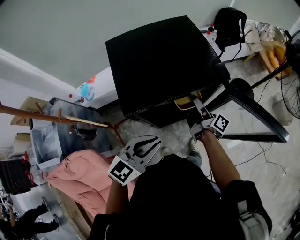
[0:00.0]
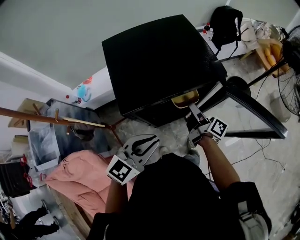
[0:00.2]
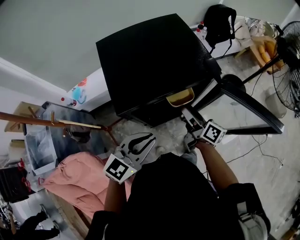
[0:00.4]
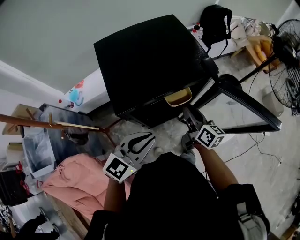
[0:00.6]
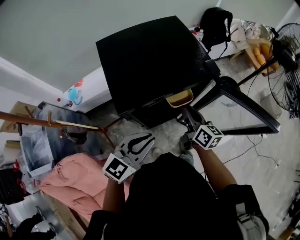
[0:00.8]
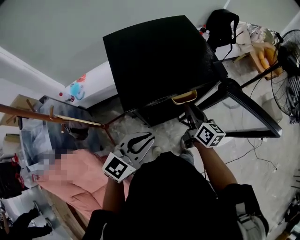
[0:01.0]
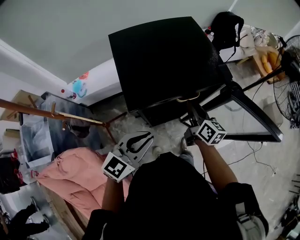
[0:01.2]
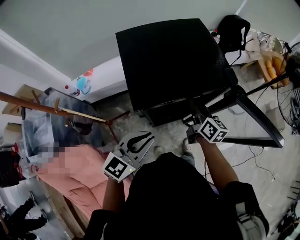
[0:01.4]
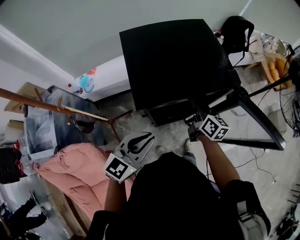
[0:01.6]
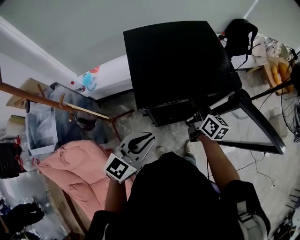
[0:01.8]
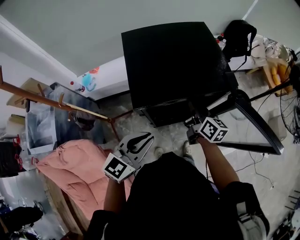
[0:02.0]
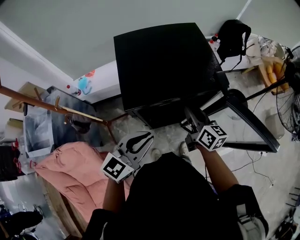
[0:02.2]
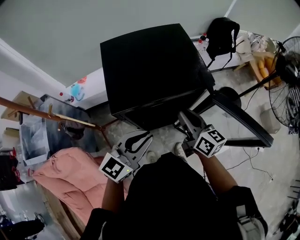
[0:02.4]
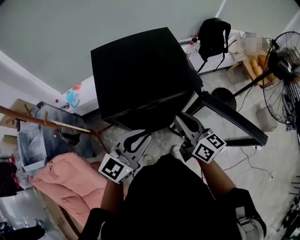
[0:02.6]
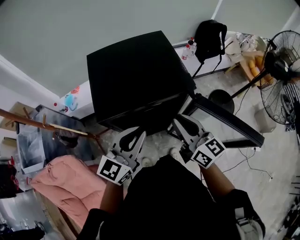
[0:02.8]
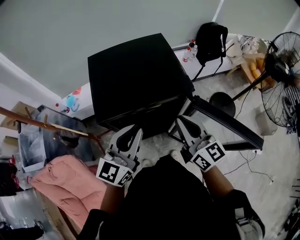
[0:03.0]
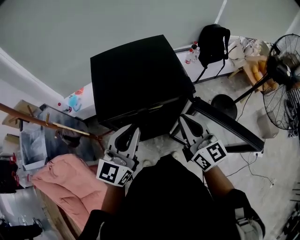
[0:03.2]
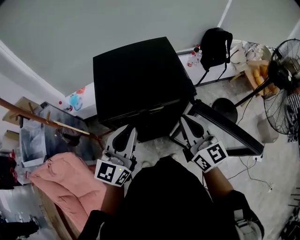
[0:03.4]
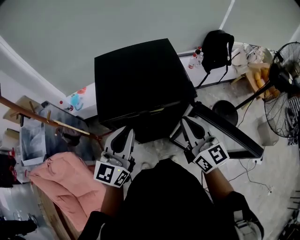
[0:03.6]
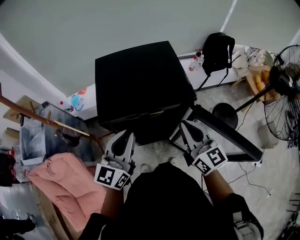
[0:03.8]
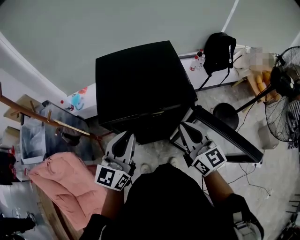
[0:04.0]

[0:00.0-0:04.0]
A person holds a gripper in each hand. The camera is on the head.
0:00.0 to 0:01.4: The right gripper twists some 40 degrees counterclockwise, seen from behind, and closes up.
0:01.4 to 0:02.6: The left gripper goes about 10 cm to the right, while the right gripper shifts about 10 cm upward and backward.
0:02.6 to 0:04.0: The right gripper swivels roughly 20 degrees, while the left gripper moves about 5 cm, and turns by roughly 30 degrees.

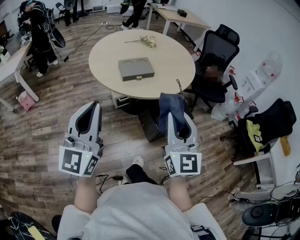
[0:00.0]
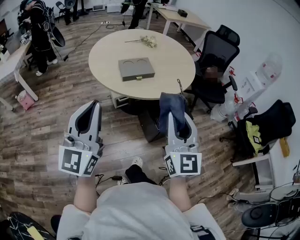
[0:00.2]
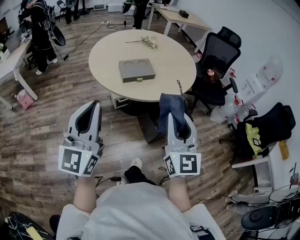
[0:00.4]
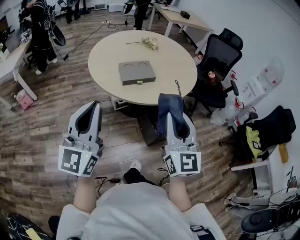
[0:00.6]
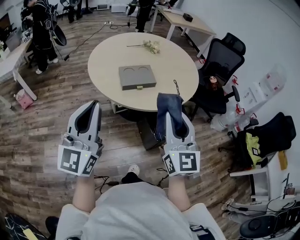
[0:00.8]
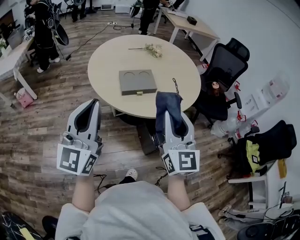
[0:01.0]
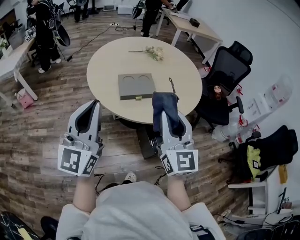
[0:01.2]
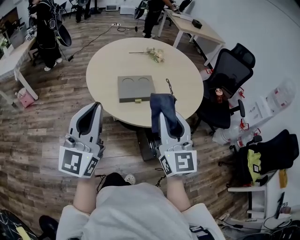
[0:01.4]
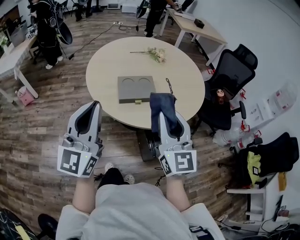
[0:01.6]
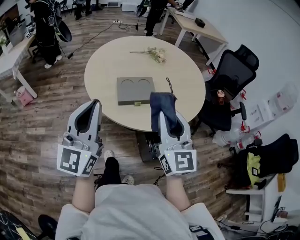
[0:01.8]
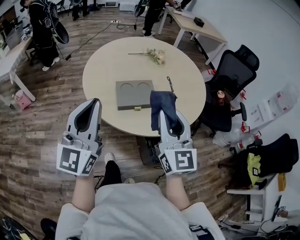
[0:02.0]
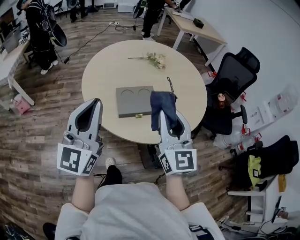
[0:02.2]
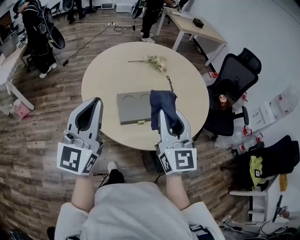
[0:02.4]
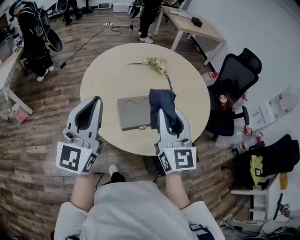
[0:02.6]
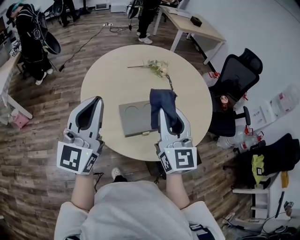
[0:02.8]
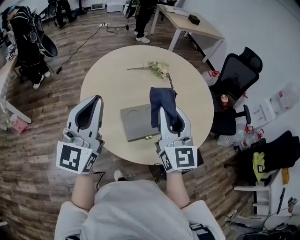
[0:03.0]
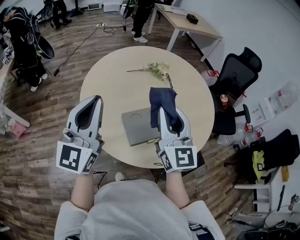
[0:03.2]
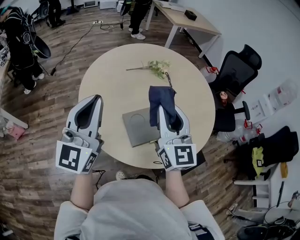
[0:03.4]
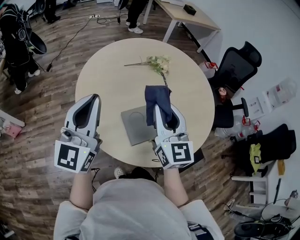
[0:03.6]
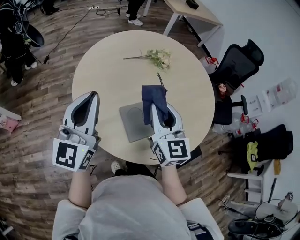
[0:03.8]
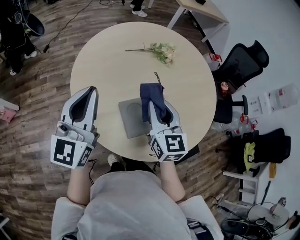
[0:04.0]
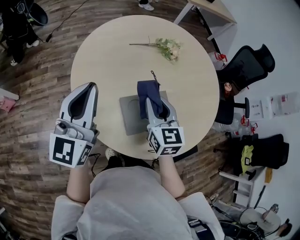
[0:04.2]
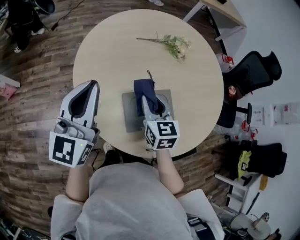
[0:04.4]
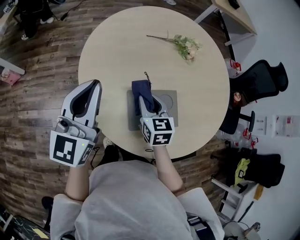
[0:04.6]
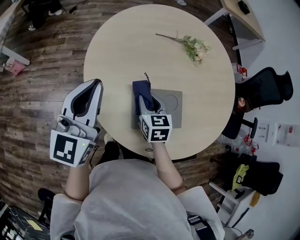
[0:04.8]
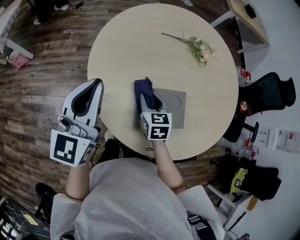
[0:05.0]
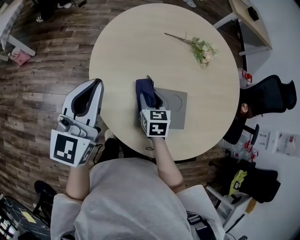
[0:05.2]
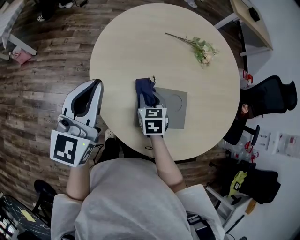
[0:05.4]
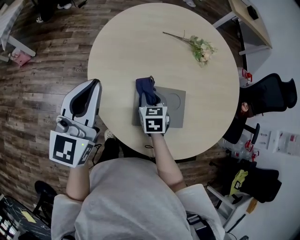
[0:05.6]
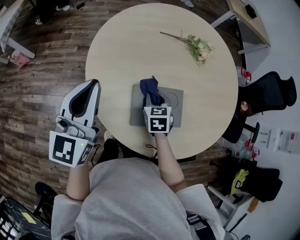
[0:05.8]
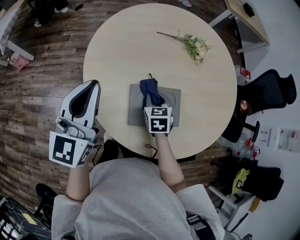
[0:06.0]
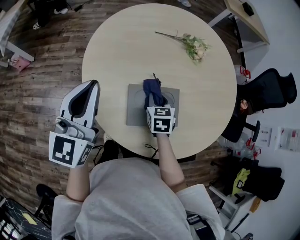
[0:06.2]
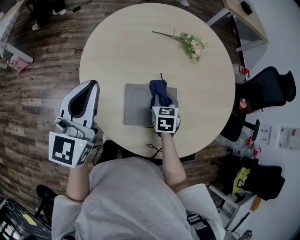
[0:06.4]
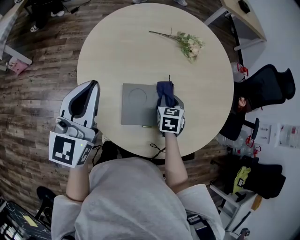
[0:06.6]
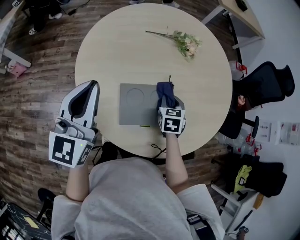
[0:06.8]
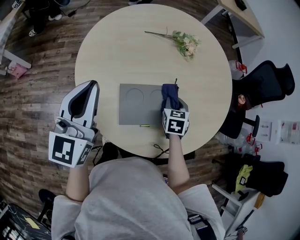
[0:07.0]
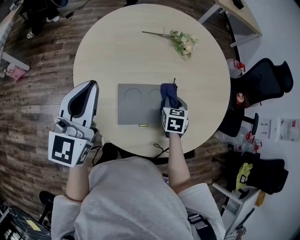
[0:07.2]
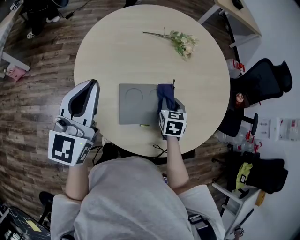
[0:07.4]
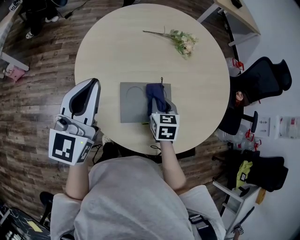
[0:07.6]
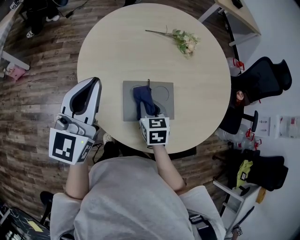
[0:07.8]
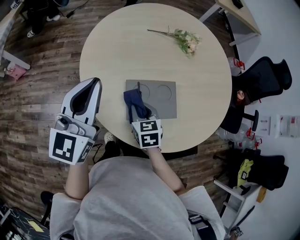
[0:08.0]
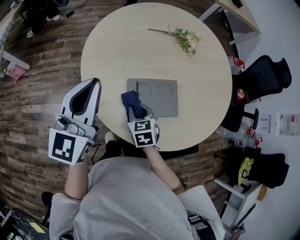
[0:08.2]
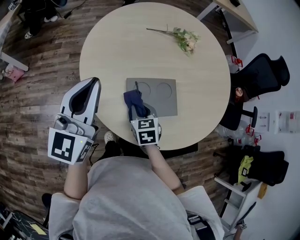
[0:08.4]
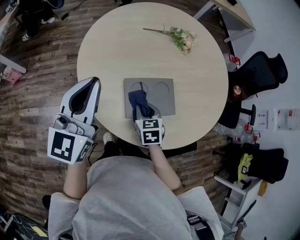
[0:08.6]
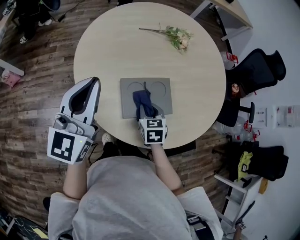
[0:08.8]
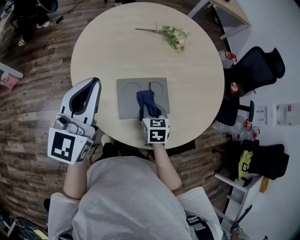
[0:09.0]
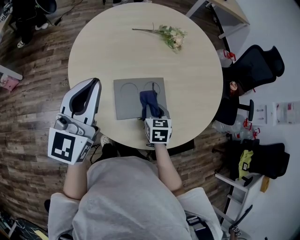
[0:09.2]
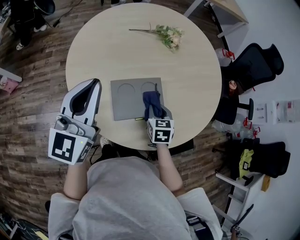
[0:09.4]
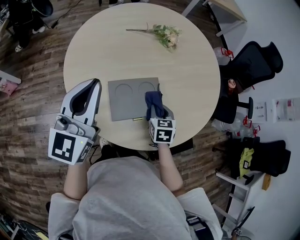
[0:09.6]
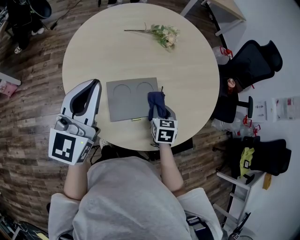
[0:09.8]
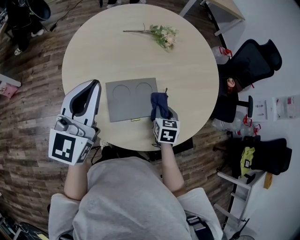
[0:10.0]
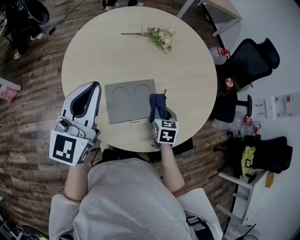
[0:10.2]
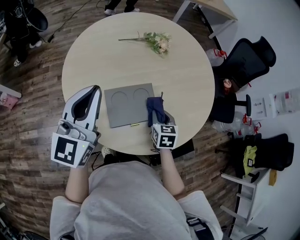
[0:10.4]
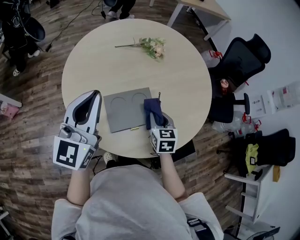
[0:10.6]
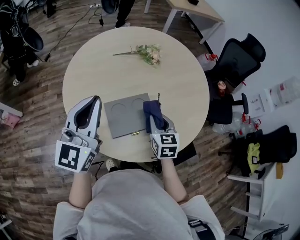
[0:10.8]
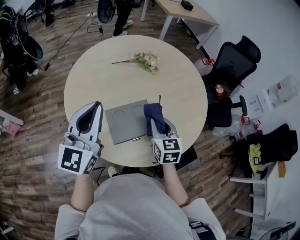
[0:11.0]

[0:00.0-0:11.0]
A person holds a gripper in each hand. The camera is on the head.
0:00.0 to 0:01.6: Both grippers travel together forward, about 20 cm.
0:01.6 to 0:03.2: Both grippers travel together forward, approximately 30 cm.
0:03.2 to 0:04.8: The left gripper is displaced downward and forward by approximately 15 cm, and changes its angle by roughly 20 degrees; the right gripper heads downward, covering approximately 30 cm, and angles its fingers downward, by roughly 40 degrees.
0:04.8 to 0:06.2: The right gripper moves to the right, about 5 cm.
0:06.2 to 0:07.8: The right gripper goes approximately 5 cm backward, and moves some 15 cm to the right and comes back.
0:07.8 to 0:09.4: The right gripper travels to the right by about 10 cm.
0:09.4 to 0:11.0: The right gripper goes approximately 15 cm upward, and rotates approximately 20 degrees.

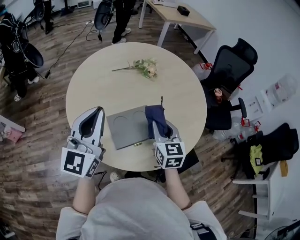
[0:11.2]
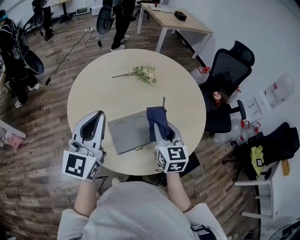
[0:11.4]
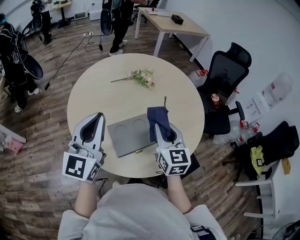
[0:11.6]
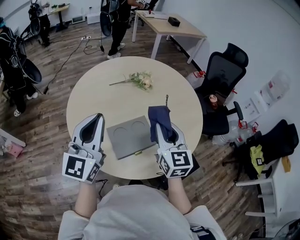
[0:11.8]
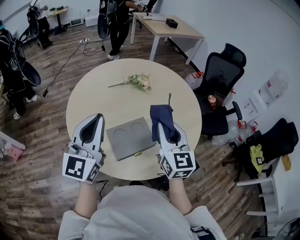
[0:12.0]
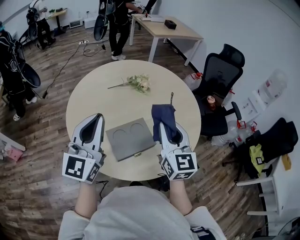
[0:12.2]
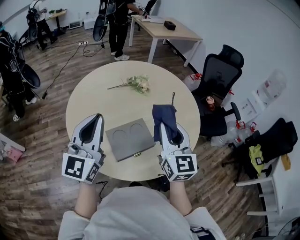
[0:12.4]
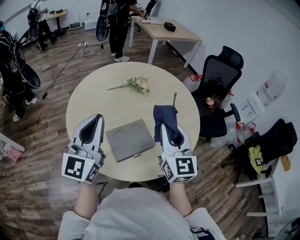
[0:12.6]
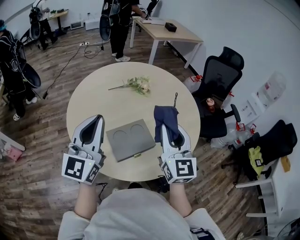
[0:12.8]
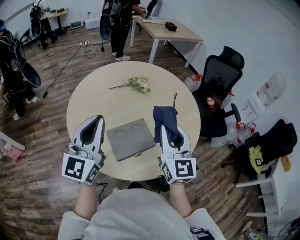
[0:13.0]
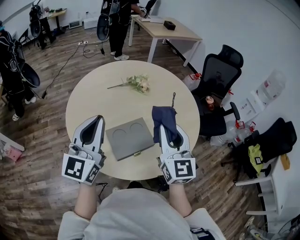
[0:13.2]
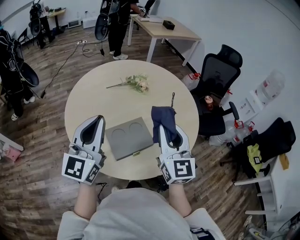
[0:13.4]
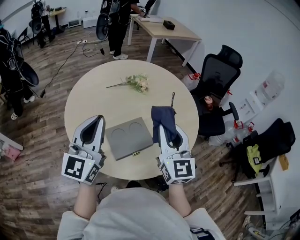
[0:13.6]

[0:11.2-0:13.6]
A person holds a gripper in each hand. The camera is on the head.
0:11.2 to 0:12.4: The right gripper moves upward, some 15 cm, and swivels approximately 20 degrees.
0:12.4 to 0:13.6: There are only small adjustments of the grippers.

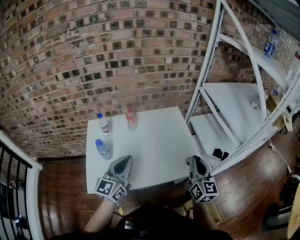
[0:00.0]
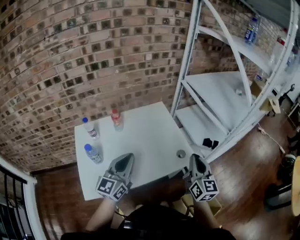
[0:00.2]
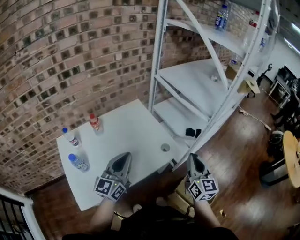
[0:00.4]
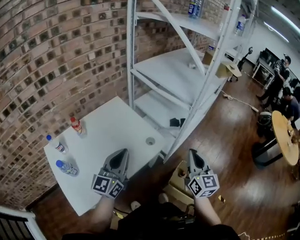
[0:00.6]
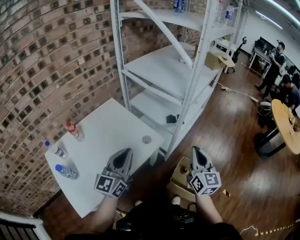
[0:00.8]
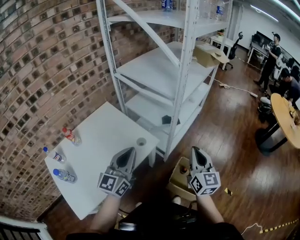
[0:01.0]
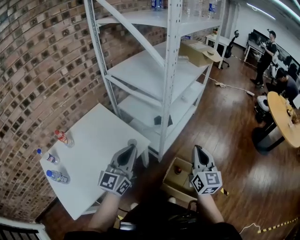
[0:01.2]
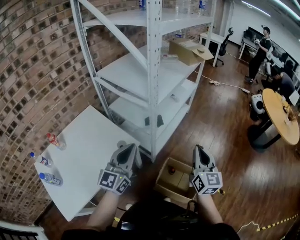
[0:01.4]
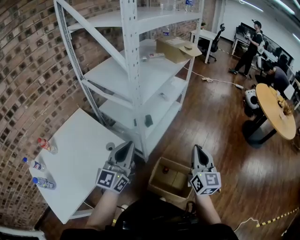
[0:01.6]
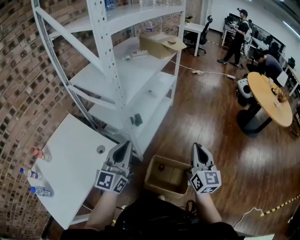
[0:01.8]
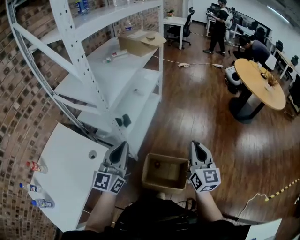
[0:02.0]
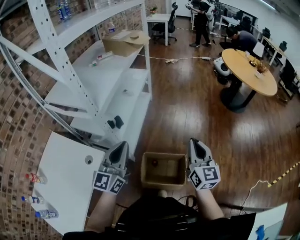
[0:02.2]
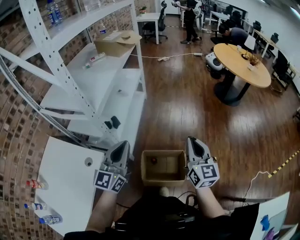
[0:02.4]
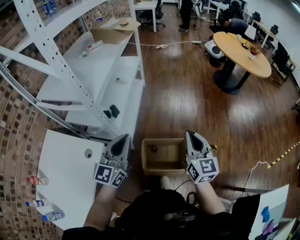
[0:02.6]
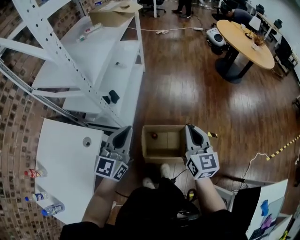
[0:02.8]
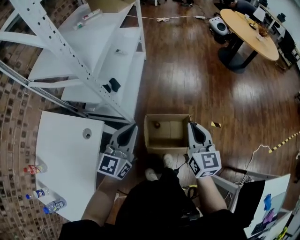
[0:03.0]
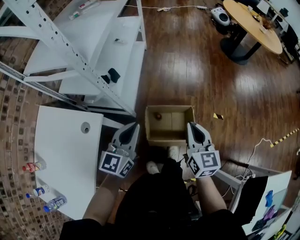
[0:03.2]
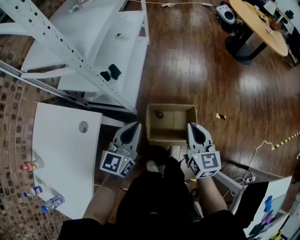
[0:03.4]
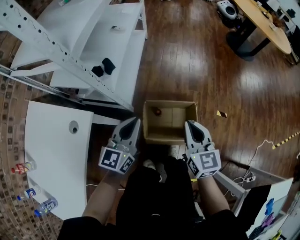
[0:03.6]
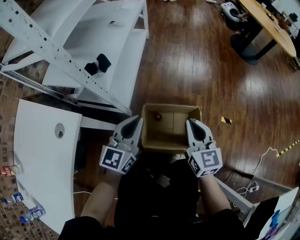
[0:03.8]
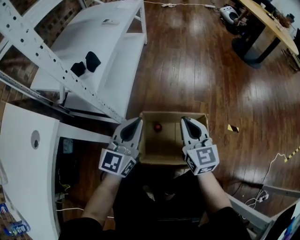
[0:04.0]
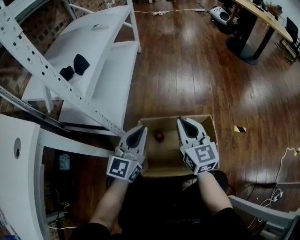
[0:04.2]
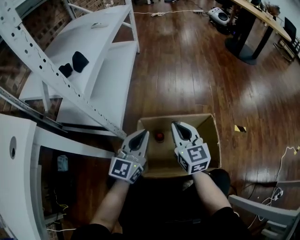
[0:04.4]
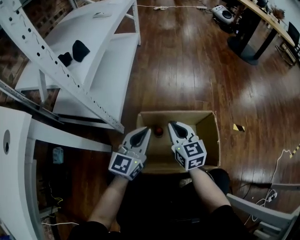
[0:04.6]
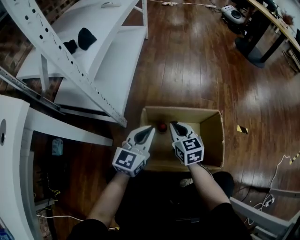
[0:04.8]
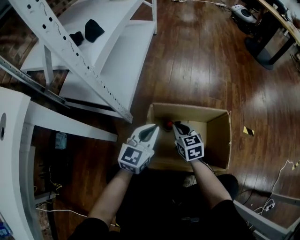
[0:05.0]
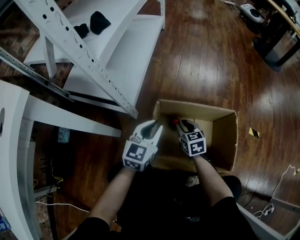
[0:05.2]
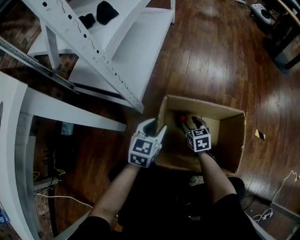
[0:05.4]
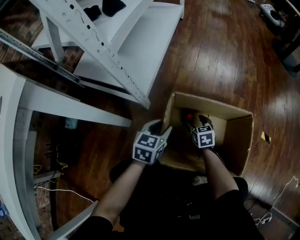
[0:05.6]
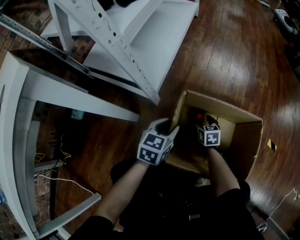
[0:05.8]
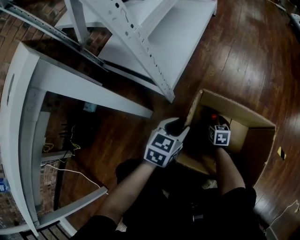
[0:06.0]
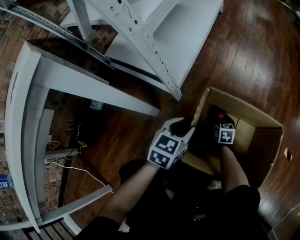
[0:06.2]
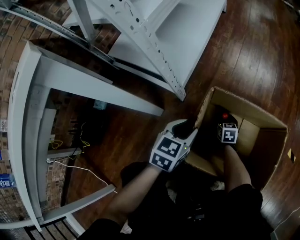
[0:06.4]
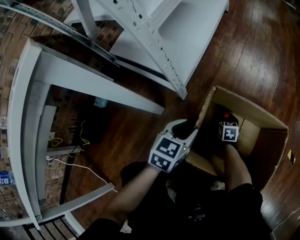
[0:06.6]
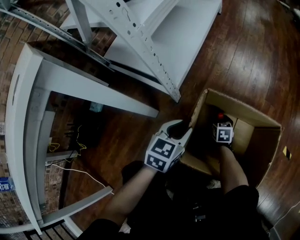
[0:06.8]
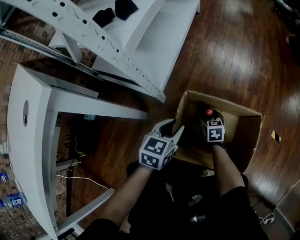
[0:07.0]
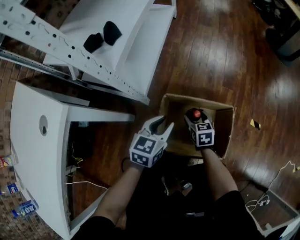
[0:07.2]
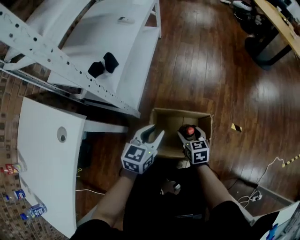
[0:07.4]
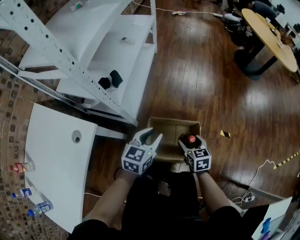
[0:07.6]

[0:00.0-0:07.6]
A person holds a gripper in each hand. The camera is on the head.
0:00.0 to 0:01.6: The two grippers travel together, some 40 cm. The left gripper swivels roughly 40 degrees, while the right gripper swivels roughly 40 degrees.
0:01.6 to 0:03.0: The left gripper travels downward and to the right by about 15 cm, and changes its angle by some 30 degrees, while the right gripper shifts approximately 15 cm downward, backward and to the right, and rotates roughly 20 degrees.
0:03.0 to 0:04.6: Both grippers move downward, about 50 cm.
0:04.6 to 0:06.0: The right gripper heads downward, covering roughly 35 cm, tips its fingers downward by about 30 degrees, and opens. Meanwhile the left gripper heads downward and to the left, covering roughly 15 cm, tips its fingers downward by roughly 30 degrees, and opens its fingers.
0:06.0 to 0:07.6: The two grippers go approximately 50 cm upward.
